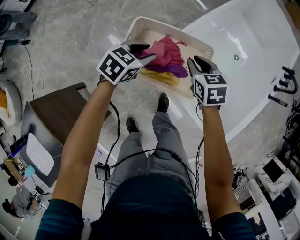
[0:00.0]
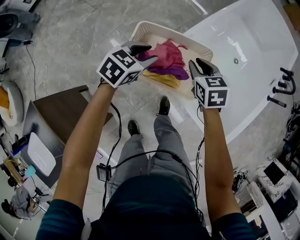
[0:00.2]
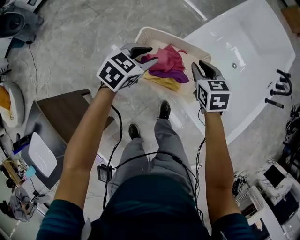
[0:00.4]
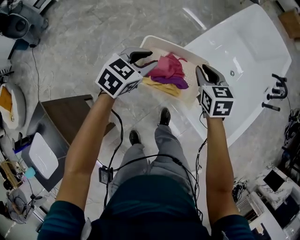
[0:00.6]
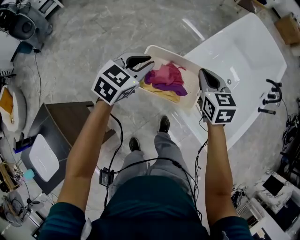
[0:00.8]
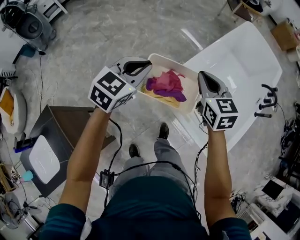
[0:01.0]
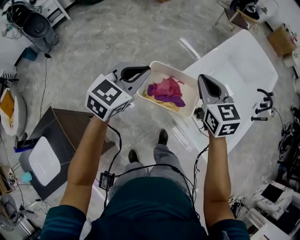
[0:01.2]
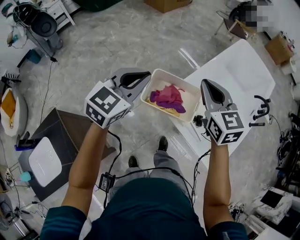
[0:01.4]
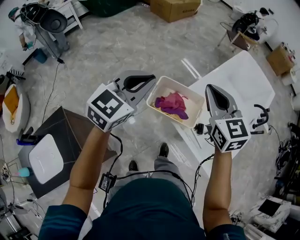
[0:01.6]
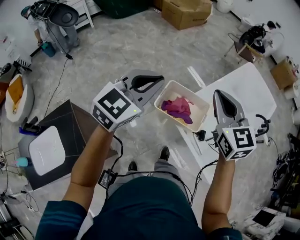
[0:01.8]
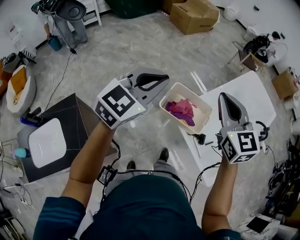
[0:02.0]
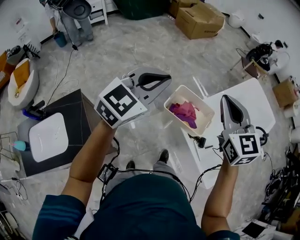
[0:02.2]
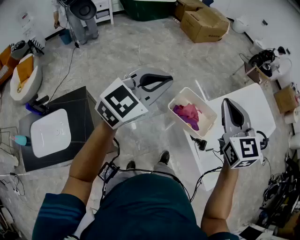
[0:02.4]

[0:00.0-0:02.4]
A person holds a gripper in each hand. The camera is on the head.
0:00.0 to 0:01.2: Both grippers move upward, some 35 cm. The right gripper changes its angle by roughly 30 degrees, while the left gripper turns by approximately 30 degrees, and closes its fingers.
0:01.2 to 0:02.4: The left gripper shifts some 30 cm backward, upward and to the left; the right gripper shifts roughly 30 cm upward, backward and to the left, and rotates roughly 20 degrees.

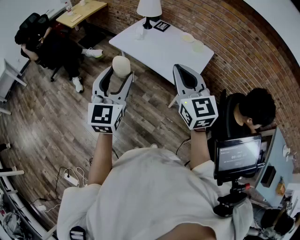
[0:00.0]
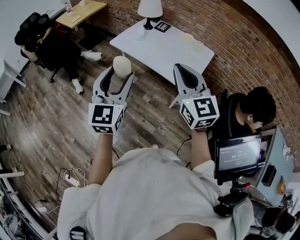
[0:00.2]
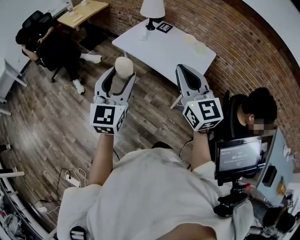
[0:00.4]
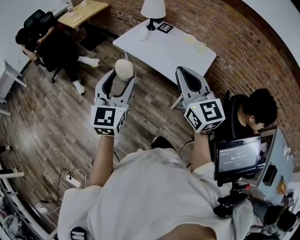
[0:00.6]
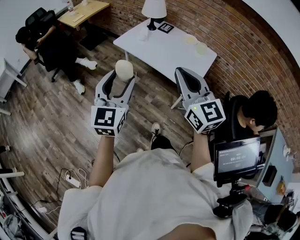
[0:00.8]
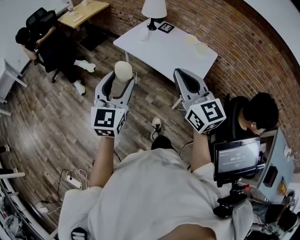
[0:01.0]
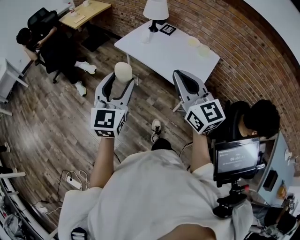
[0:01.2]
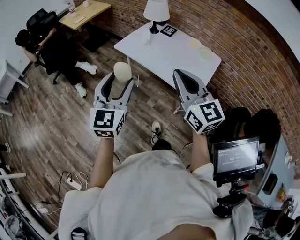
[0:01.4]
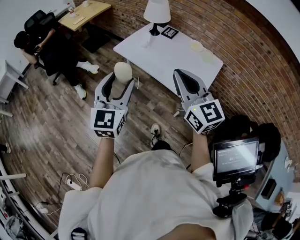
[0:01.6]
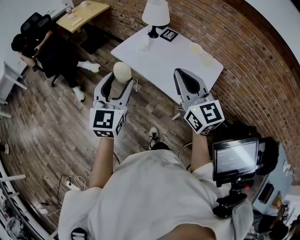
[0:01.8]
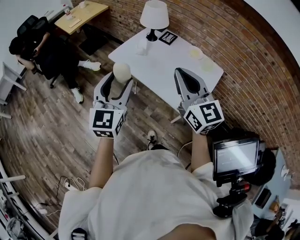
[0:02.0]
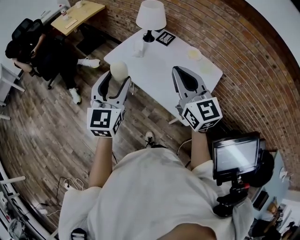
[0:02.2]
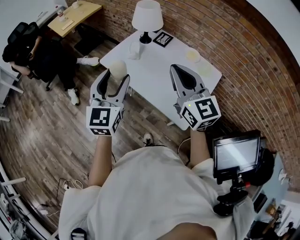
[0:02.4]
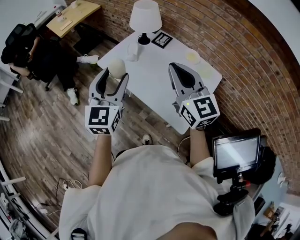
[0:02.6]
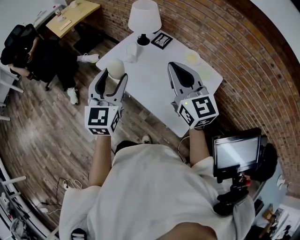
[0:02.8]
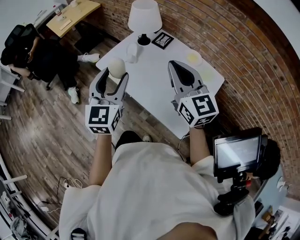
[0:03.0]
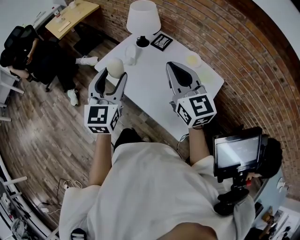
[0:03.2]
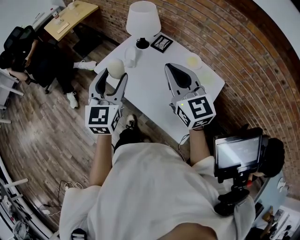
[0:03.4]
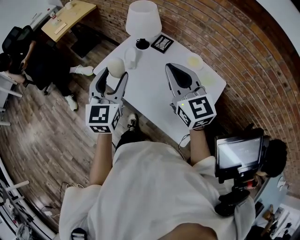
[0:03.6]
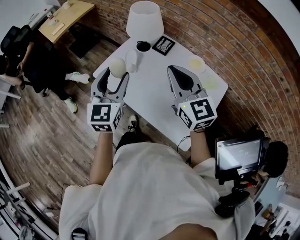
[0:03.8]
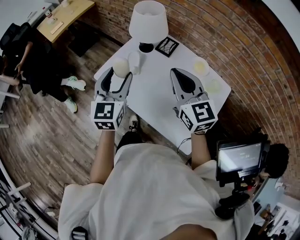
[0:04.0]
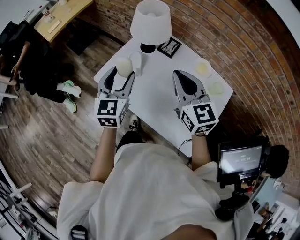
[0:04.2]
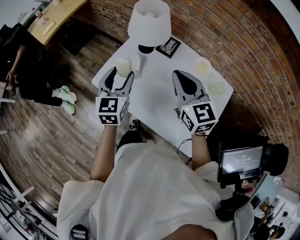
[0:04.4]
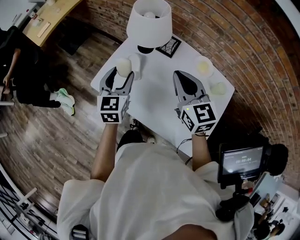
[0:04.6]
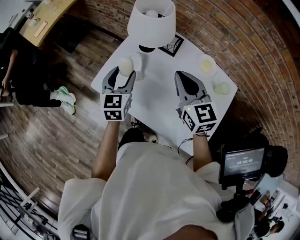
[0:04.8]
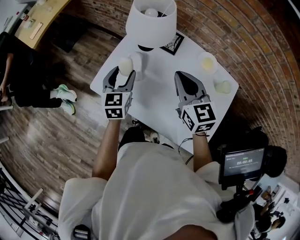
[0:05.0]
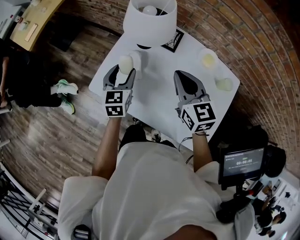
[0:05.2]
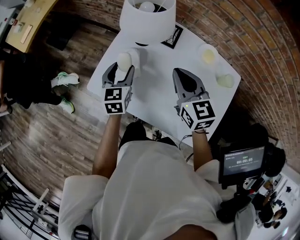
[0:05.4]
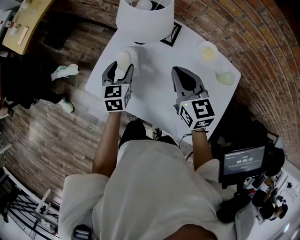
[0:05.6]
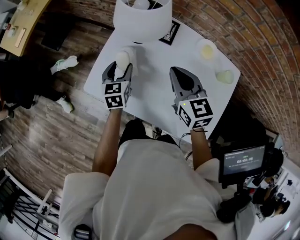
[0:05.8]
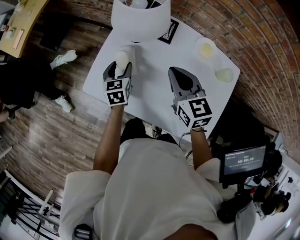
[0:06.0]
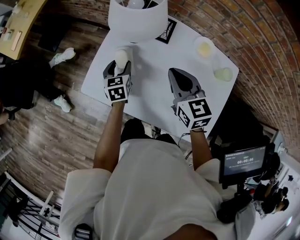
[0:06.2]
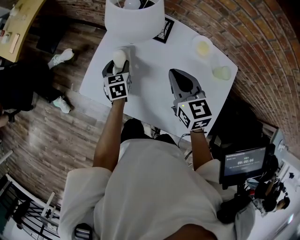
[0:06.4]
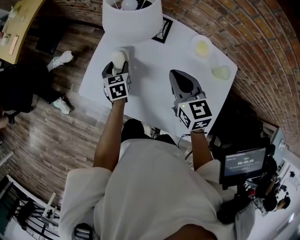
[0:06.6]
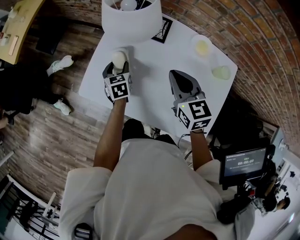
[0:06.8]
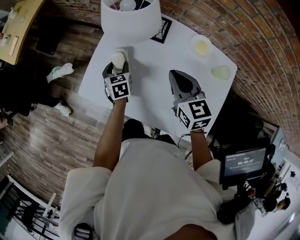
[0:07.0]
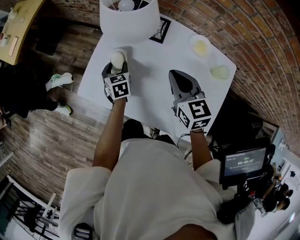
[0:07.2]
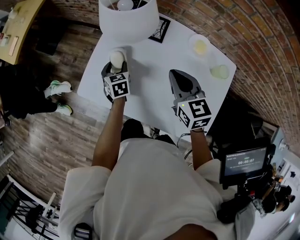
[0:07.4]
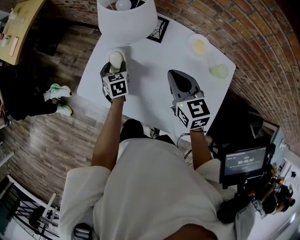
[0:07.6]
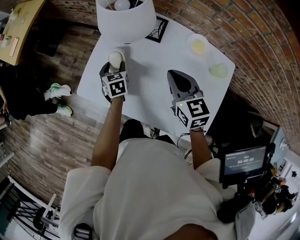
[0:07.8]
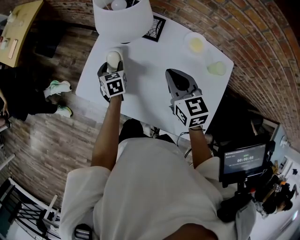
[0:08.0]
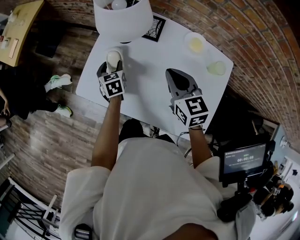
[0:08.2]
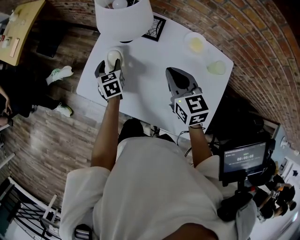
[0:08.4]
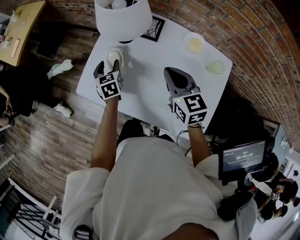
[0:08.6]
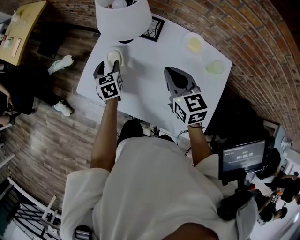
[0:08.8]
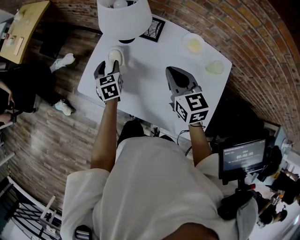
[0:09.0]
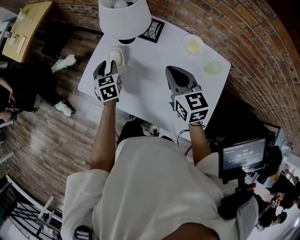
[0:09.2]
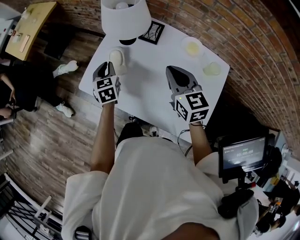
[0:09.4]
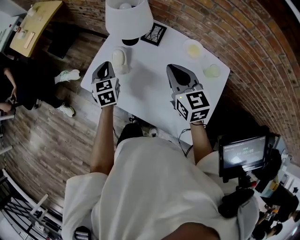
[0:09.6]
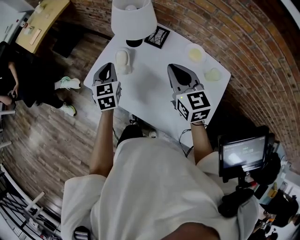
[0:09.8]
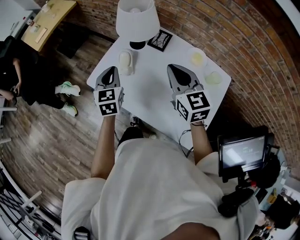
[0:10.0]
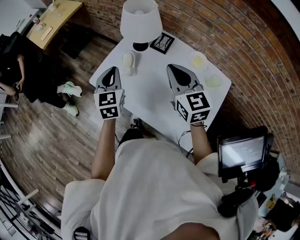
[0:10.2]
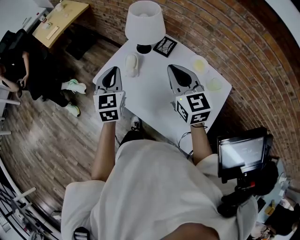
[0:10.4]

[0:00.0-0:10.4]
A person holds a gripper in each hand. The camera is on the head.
0:00.0 to 0:01.4: The right gripper ends up roughly 5 cm from where it was; the left gripper changes place by approximately 5 cm.
0:01.4 to 0:03.0: Both grippers move forward and to the right, about 30 cm.
0:03.0 to 0:04.4: The two grippers go about 20 cm forward and downward.
0:04.4 to 0:06.0: The left gripper goes approximately 20 cm downward and forward, and changes its angle by roughly 20 degrees. The right gripper shifts about 10 cm downward and forward.
0:06.0 to 0:07.4: The left gripper is displaced downward by roughly 5 cm.
0:07.4 to 0:09.0: The left gripper shifts by approximately 5 cm.
0:09.0 to 0:10.4: The left gripper heads upward and backward, covering roughly 25 cm, changes its angle by about 20 degrees, and closes; the right gripper is displaced upward by roughly 10 cm, and rotates some 20 degrees.

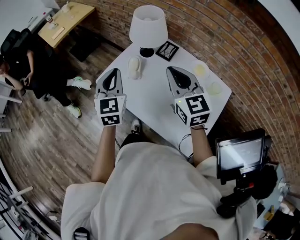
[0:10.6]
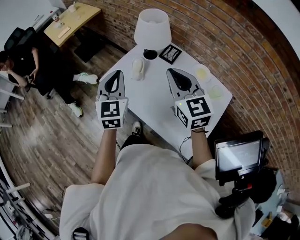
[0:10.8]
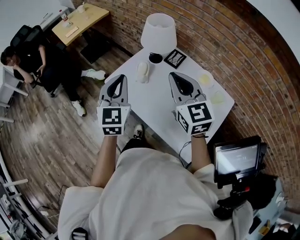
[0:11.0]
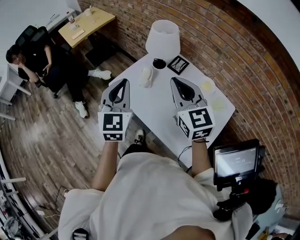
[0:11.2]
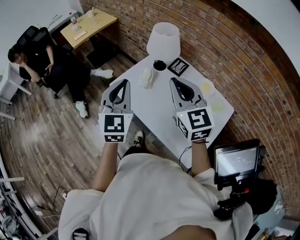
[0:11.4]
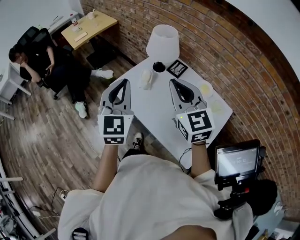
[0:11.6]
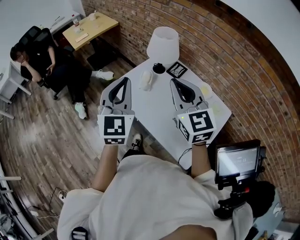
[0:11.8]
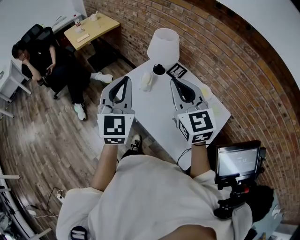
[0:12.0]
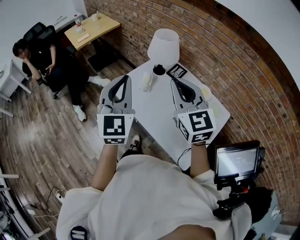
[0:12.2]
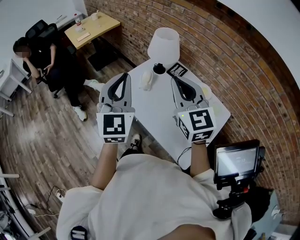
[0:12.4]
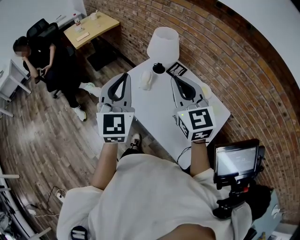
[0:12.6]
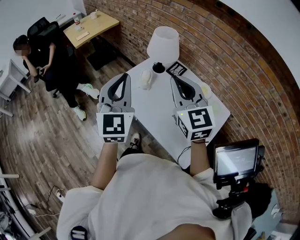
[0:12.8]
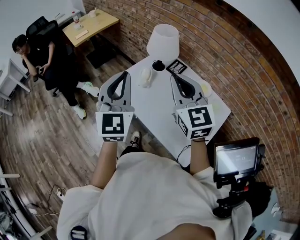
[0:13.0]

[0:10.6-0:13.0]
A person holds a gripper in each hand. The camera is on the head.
0:10.6 to 0:11.8: The right gripper shifts some 10 cm upward, backward and to the left. Meanwhile the left gripper travels upward and backward by some 15 cm.
0:11.8 to 0:13.0: The grippers stay close to where they were, moving slightly.

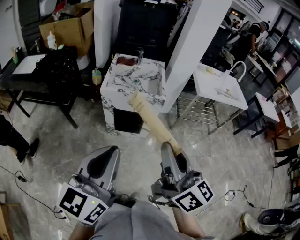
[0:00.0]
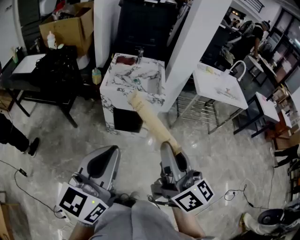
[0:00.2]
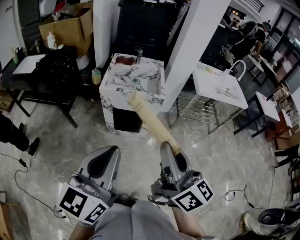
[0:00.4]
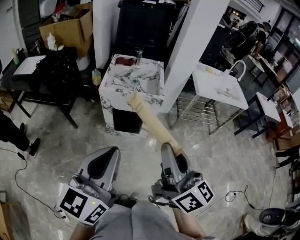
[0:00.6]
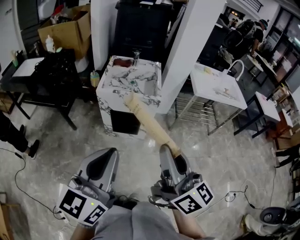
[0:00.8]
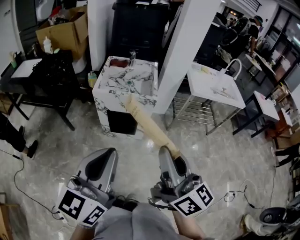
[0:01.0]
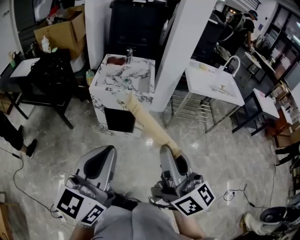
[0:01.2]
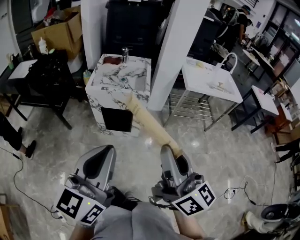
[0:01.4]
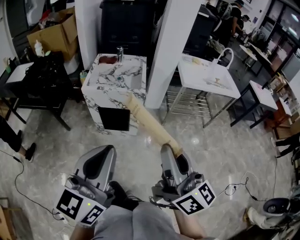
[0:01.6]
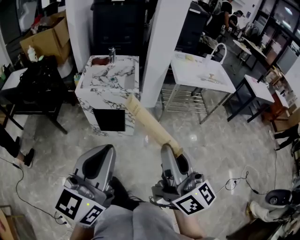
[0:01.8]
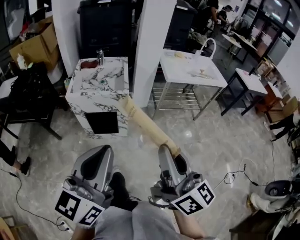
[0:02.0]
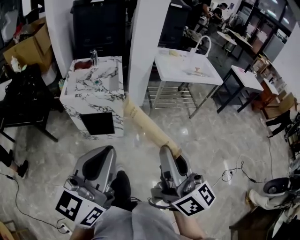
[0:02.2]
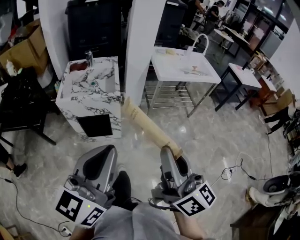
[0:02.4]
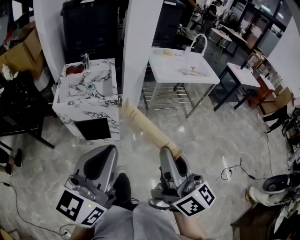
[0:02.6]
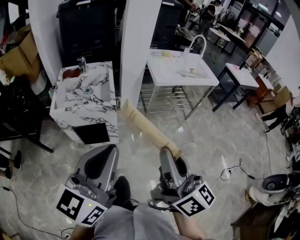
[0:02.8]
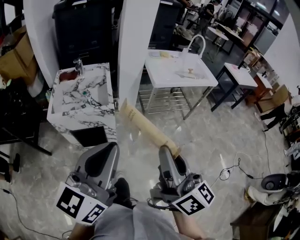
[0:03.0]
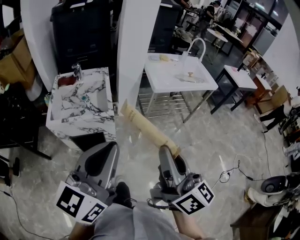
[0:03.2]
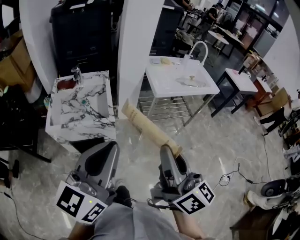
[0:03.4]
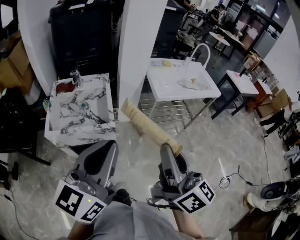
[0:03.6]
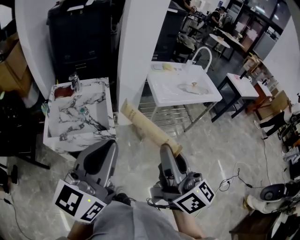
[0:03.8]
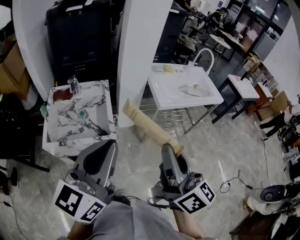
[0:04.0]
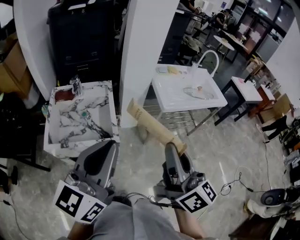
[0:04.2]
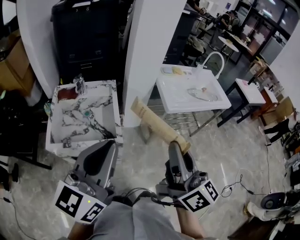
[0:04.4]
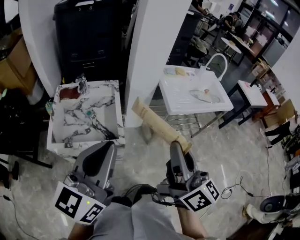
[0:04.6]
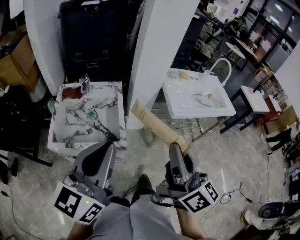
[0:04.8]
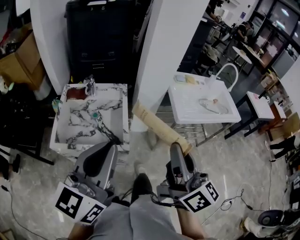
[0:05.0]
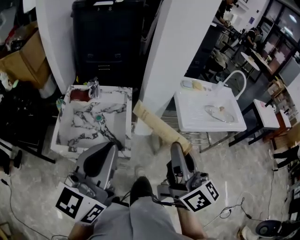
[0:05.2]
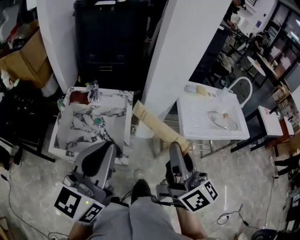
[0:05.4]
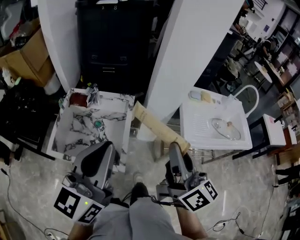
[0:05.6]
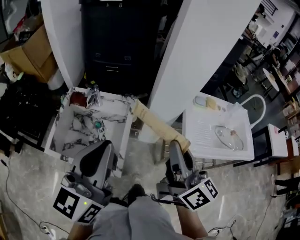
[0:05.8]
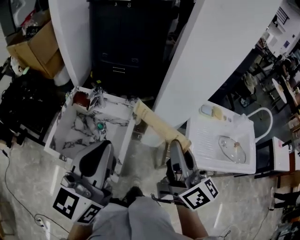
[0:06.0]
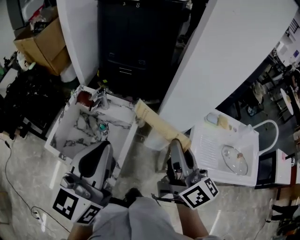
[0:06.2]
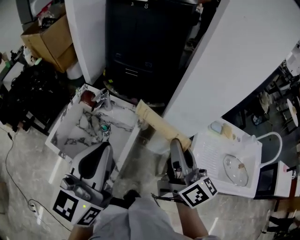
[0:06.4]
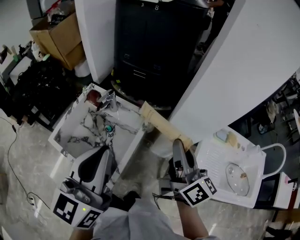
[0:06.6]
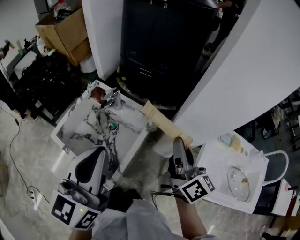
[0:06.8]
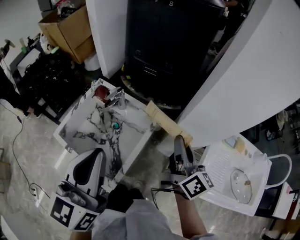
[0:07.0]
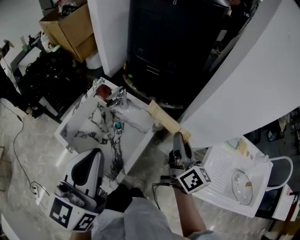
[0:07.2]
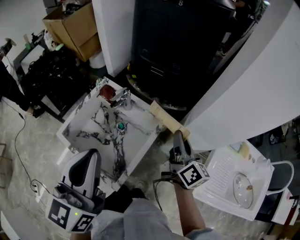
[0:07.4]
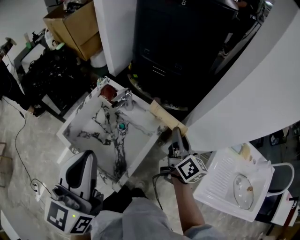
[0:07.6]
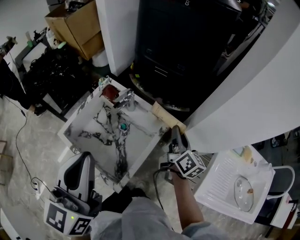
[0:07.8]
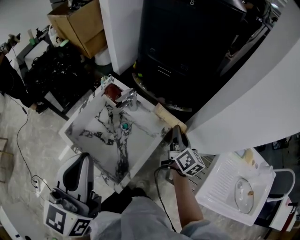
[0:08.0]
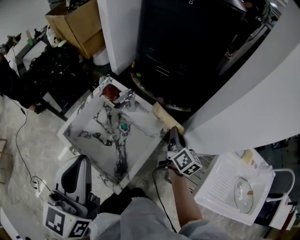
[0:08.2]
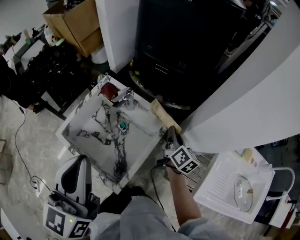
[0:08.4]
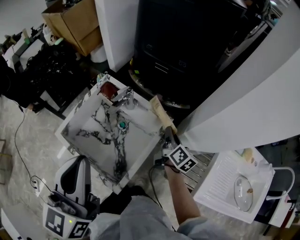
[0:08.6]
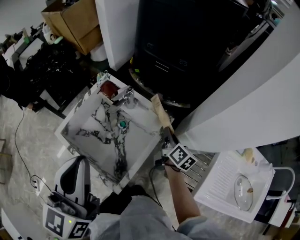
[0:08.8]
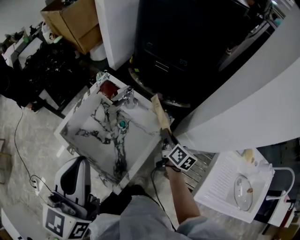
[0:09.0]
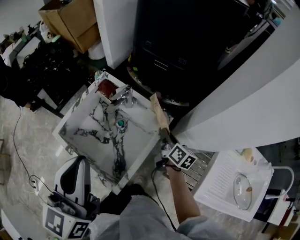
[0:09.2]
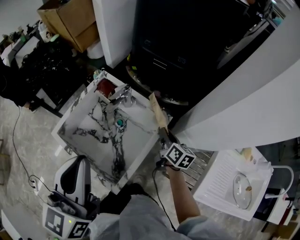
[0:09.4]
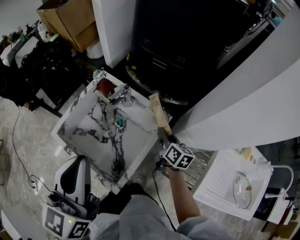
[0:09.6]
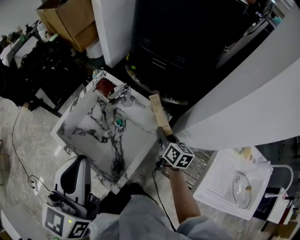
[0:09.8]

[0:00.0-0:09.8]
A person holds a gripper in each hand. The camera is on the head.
0:00.0 to 0:01.4: The two grippers go about 10 cm to the right.
0:01.4 to 0:02.8: Both grippers travel together forward and to the right, roughly 15 cm.
0:02.8 to 0:04.2: Both grippers move forward, approximately 25 cm.
0:04.2 to 0:05.6: Both grippers move forward, some 20 cm.
0:05.6 to 0:07.0: The left gripper shifts approximately 10 cm forward, and changes its angle by some 30 degrees; the right gripper shifts approximately 25 cm forward, and changes its angle by approximately 20 degrees.
0:07.0 to 0:08.4: The right gripper goes approximately 20 cm downward and forward, while the left gripper heads to the left, covering approximately 5 cm.
0:08.4 to 0:09.8: The right gripper shifts by roughly 5 cm, and changes its angle by about 20 degrees.
